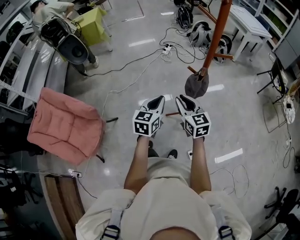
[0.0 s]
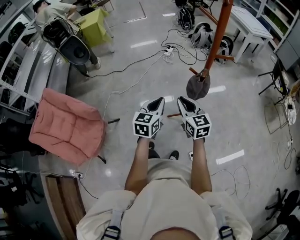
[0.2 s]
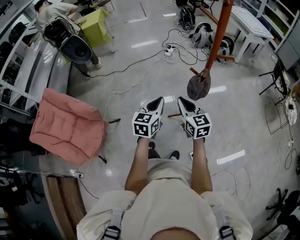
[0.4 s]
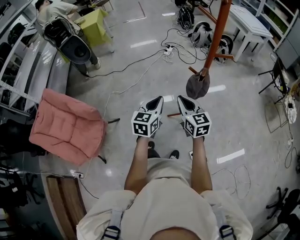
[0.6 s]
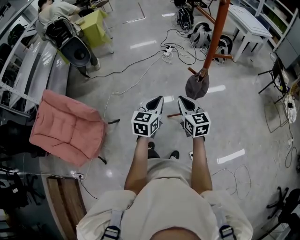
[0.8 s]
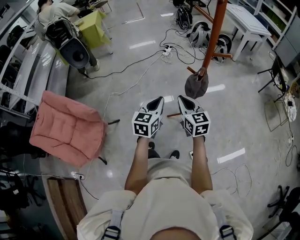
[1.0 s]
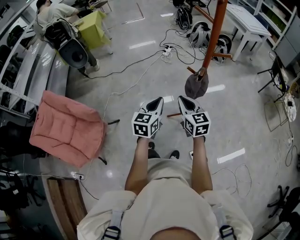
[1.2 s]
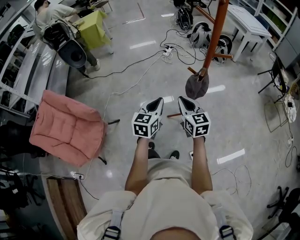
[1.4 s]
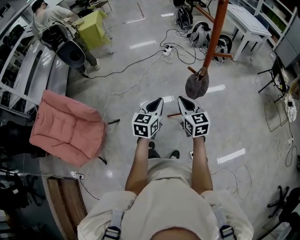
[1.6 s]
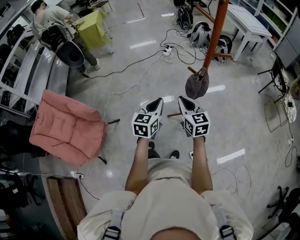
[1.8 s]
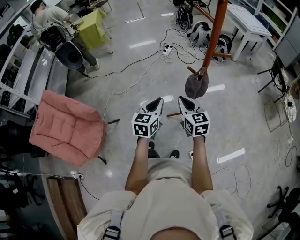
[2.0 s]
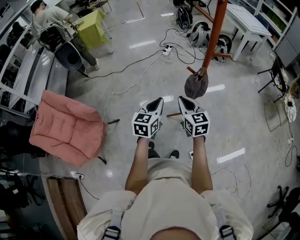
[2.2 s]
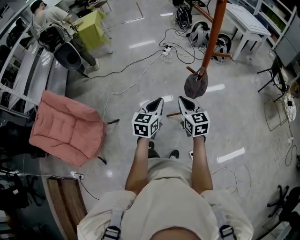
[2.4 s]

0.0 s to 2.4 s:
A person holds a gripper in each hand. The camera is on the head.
0.0 to 1.2 s: Both grippers stay about where they are.
1.2 to 2.4 s: The two grippers keep their place.

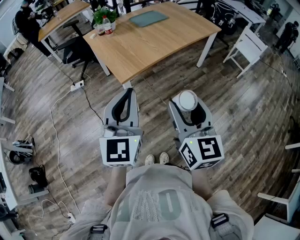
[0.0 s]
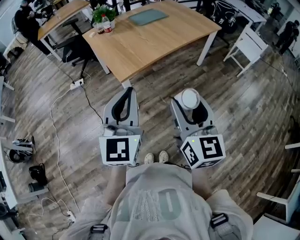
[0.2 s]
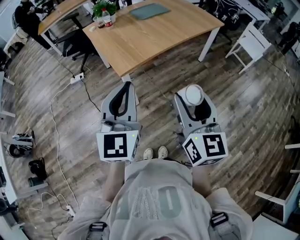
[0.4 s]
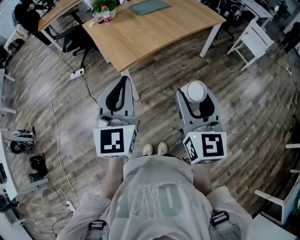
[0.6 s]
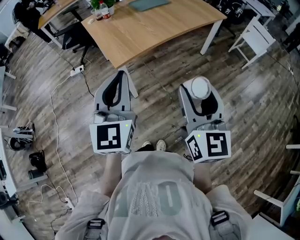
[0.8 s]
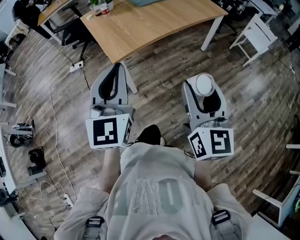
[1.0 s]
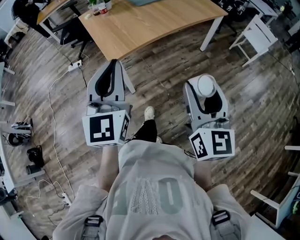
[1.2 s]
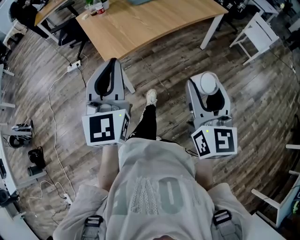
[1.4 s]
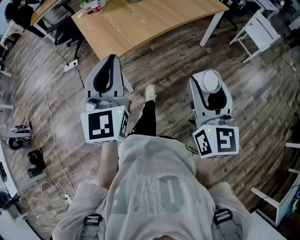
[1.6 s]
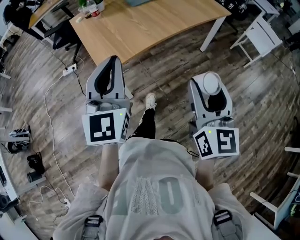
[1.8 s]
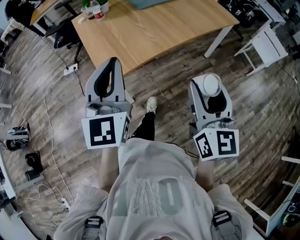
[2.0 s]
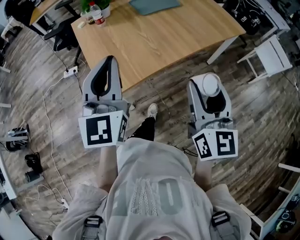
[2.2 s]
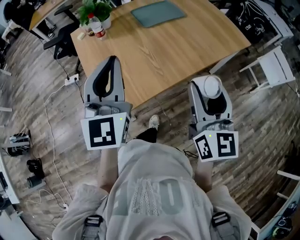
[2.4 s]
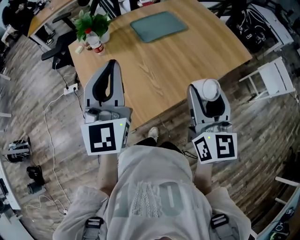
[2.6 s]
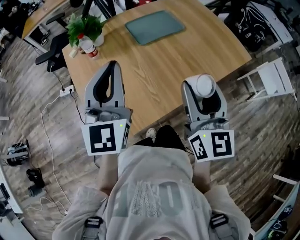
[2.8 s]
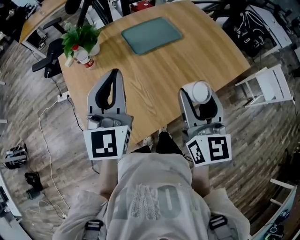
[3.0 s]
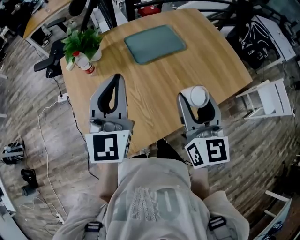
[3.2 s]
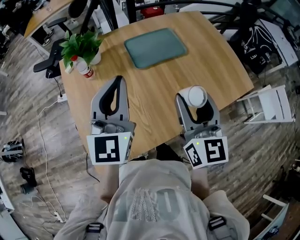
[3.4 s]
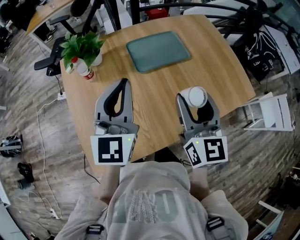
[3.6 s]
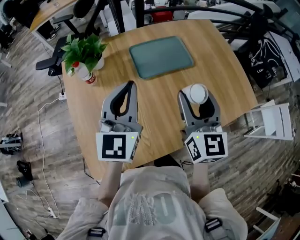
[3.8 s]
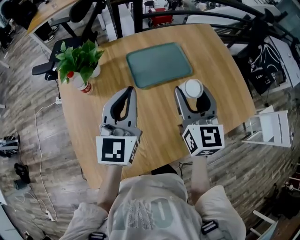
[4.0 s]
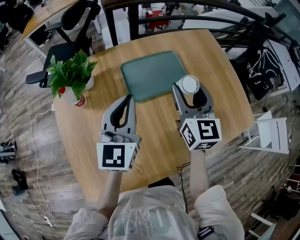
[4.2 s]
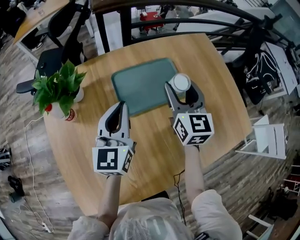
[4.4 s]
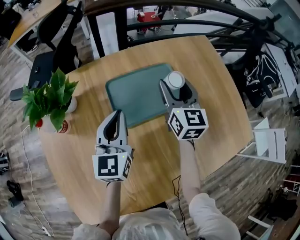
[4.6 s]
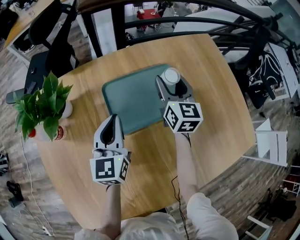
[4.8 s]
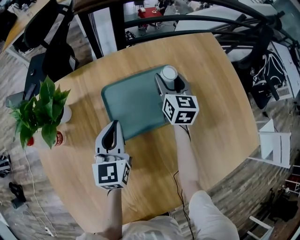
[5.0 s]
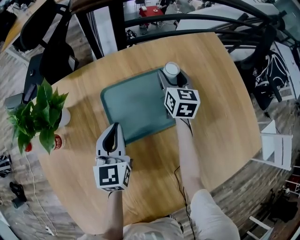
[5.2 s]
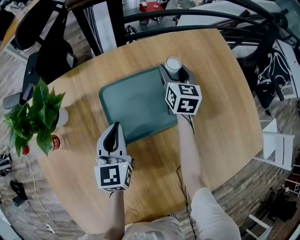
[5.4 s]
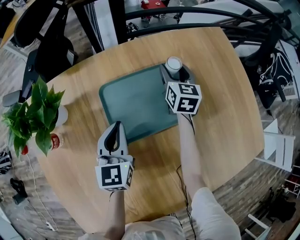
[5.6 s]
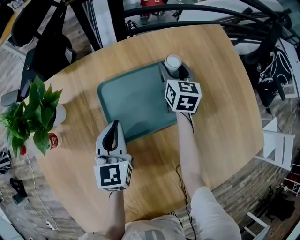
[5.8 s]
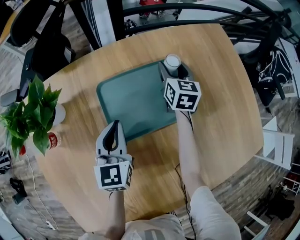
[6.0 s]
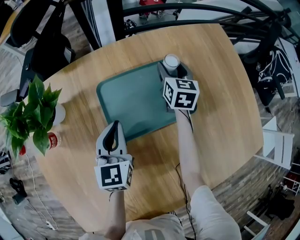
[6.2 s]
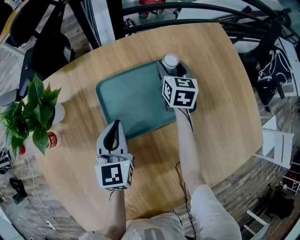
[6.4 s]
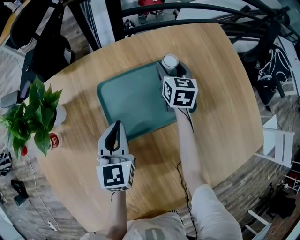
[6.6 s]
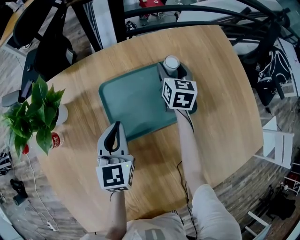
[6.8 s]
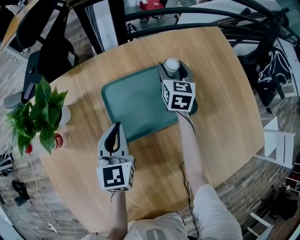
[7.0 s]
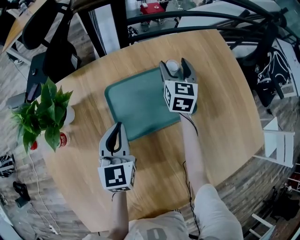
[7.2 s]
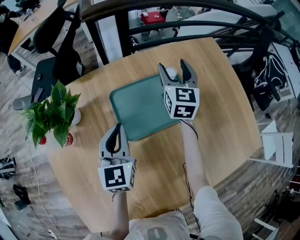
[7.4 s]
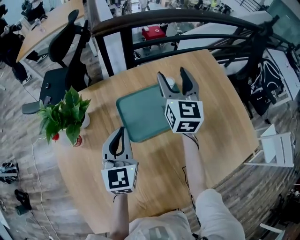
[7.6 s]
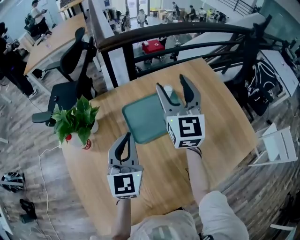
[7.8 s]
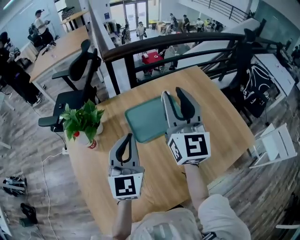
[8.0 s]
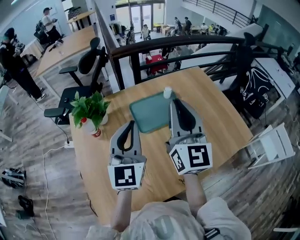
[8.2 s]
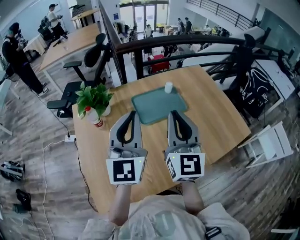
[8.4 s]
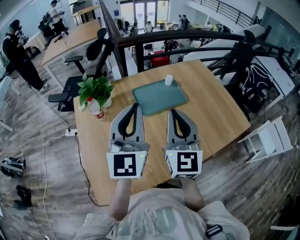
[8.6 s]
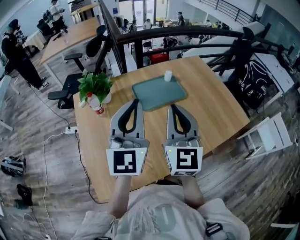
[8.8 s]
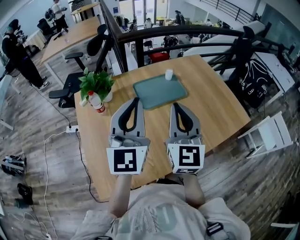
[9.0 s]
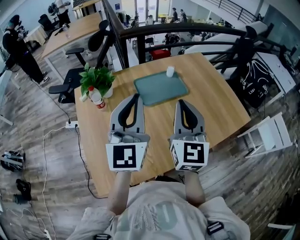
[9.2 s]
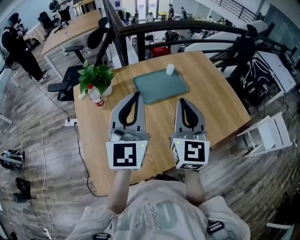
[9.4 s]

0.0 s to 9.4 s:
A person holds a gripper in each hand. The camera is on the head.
0.0 to 1.6 s: The right gripper shifts approximately 15 cm to the right and forward. Meanwhile the left gripper goes roughly 10 cm forward.
1.6 to 3.2 s: Both grippers are carried forward, approximately 50 cm.
3.2 to 4.8 s: The left gripper heads forward and downward, covering roughly 35 cm, and rotates roughly 30 degrees; the right gripper travels forward by approximately 50 cm.
4.8 to 6.2 s: The right gripper travels downward and forward by approximately 15 cm; the left gripper moves downward, roughly 5 cm.
6.2 to 7.8 s: The left gripper heads upward and backward, covering about 20 cm, while the right gripper is displaced upward and backward by some 35 cm, and tips its fingers upward by approximately 30 degrees.
7.8 to 9.4 s: The left gripper shifts approximately 25 cm backward and upward. The right gripper travels backward by approximately 30 cm, and closes its fingers.

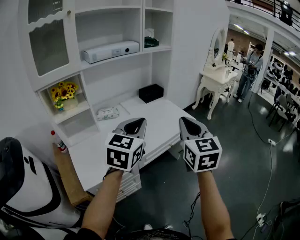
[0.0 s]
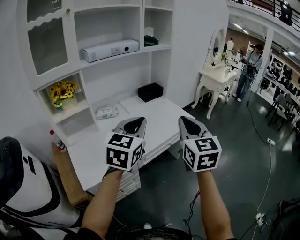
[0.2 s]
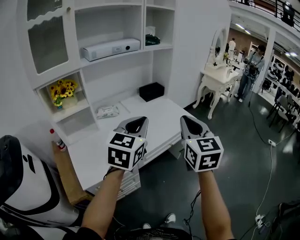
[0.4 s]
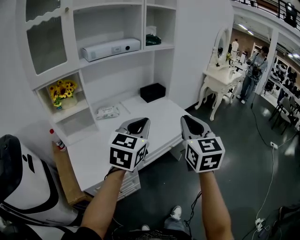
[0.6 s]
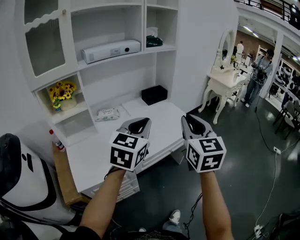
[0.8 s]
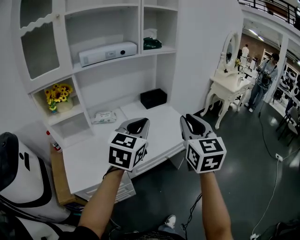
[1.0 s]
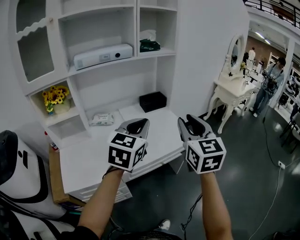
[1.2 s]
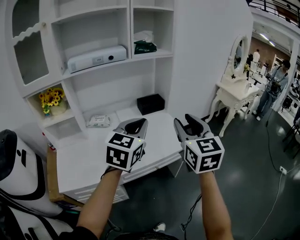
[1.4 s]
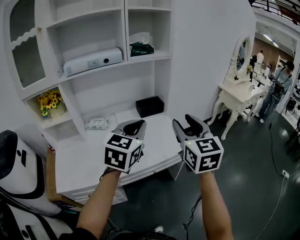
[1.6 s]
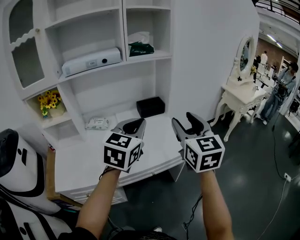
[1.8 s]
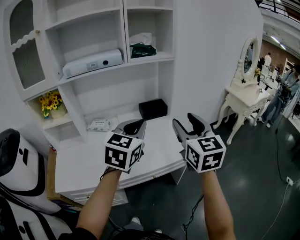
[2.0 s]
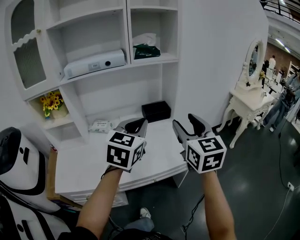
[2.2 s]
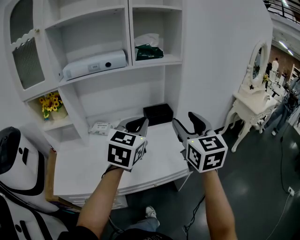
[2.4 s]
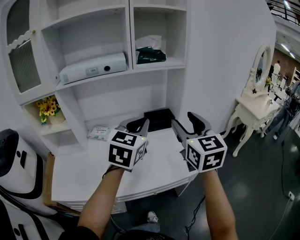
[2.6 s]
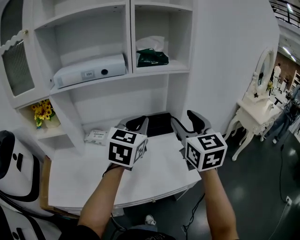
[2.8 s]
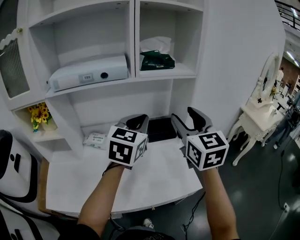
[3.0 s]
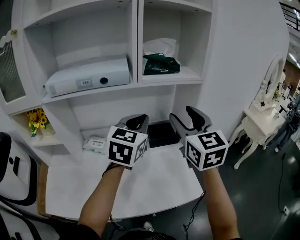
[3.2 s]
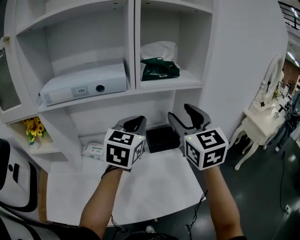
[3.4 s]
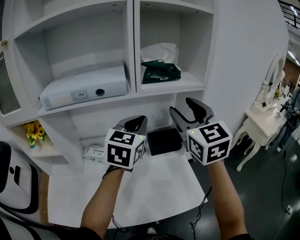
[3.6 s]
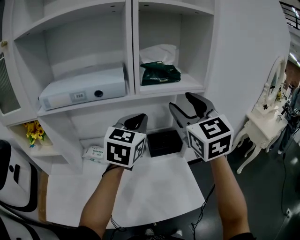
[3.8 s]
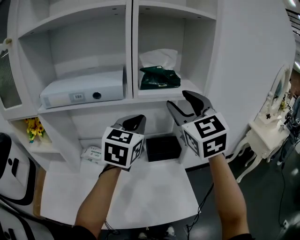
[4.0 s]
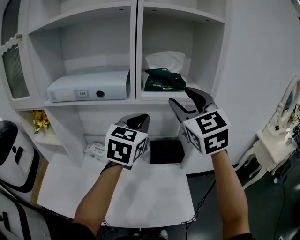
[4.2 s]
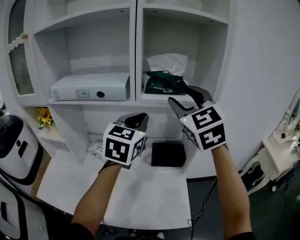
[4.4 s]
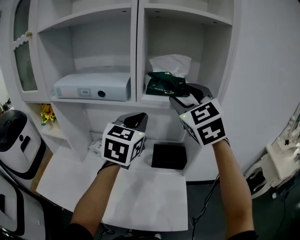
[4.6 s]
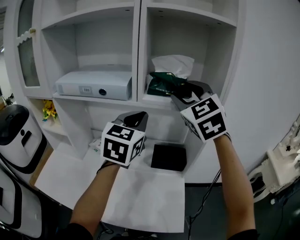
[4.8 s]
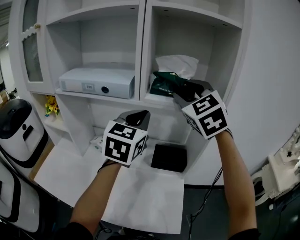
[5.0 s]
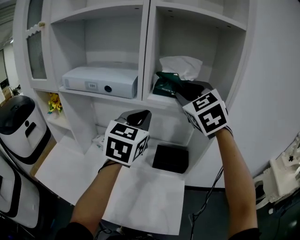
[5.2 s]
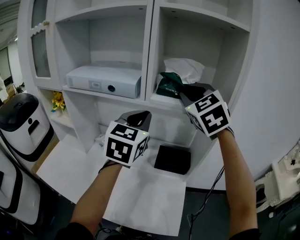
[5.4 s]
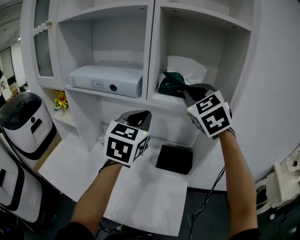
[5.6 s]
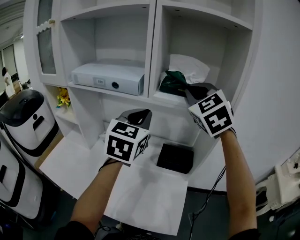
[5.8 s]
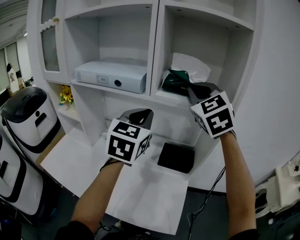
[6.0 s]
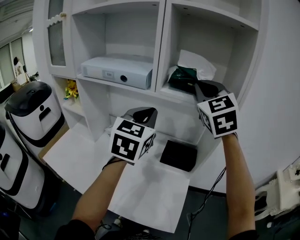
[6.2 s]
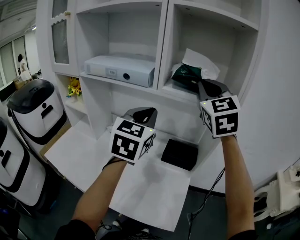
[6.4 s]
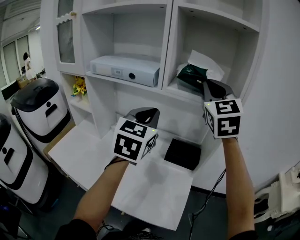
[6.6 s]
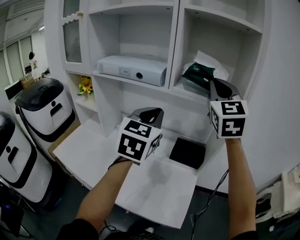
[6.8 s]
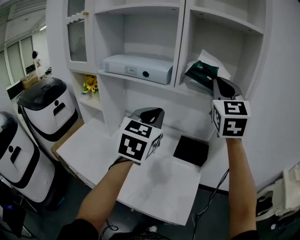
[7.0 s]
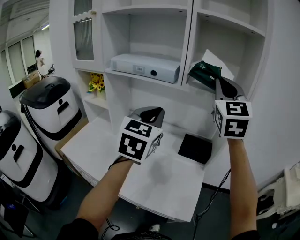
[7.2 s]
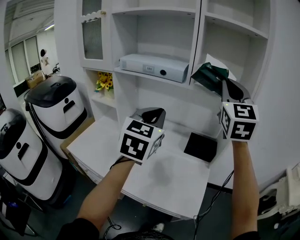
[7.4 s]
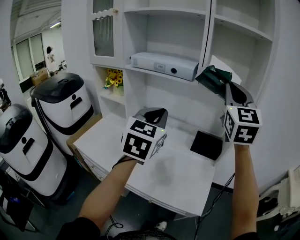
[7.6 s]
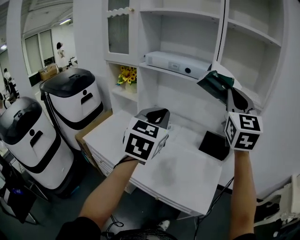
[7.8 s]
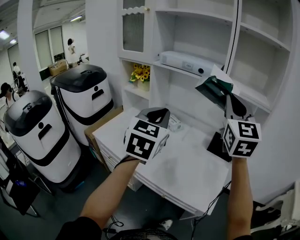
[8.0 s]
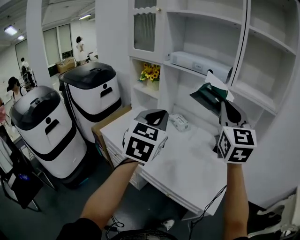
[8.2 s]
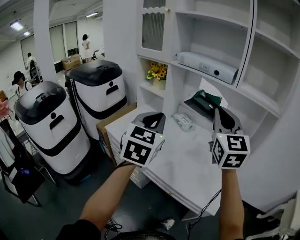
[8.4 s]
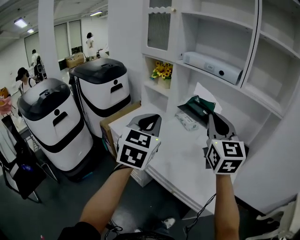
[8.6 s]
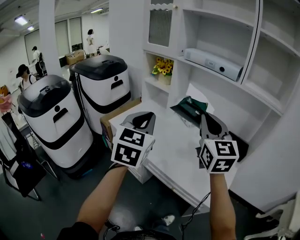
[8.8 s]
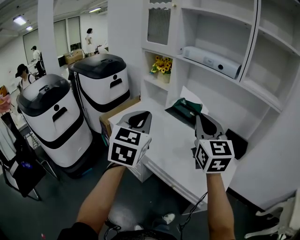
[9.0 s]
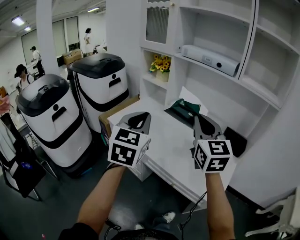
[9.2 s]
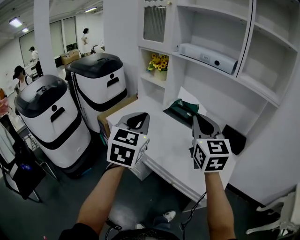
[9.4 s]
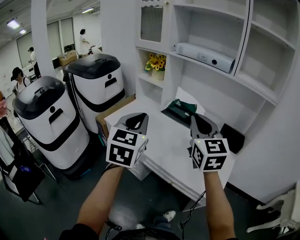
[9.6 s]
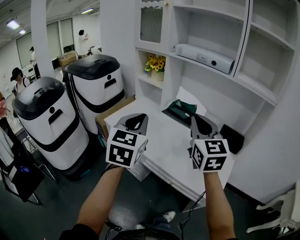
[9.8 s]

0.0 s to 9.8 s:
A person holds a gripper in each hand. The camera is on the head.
0.0 to 1.4 s: Both grippers travel together forward and to the right, some 20 cm. The right gripper opens its fingers.
1.4 to 2.8 s: Both grippers travel together forward, approximately 25 cm.
2.8 to 4.2 s: The right gripper moves forward and upward, about 20 cm, and turns by roughly 30 degrees; the left gripper travels forward by approximately 15 cm.
4.2 to 5.6 s: The right gripper moves forward, about 10 cm, changes its angle by some 20 degrees, and closes up.
5.6 to 7.0 s: The two grippers go approximately 10 cm backward. The right gripper changes its angle by approximately 30 degrees.
7.0 to 8.4 s: The right gripper heads to the left, backward and downward, covering approximately 30 cm, and changes its angle by some 20 degrees; the left gripper goes approximately 30 cm to the left and backward.
8.4 to 9.8 s: The right gripper is displaced downward and to the left by some 10 cm; the left gripper goes some 5 cm to the left.

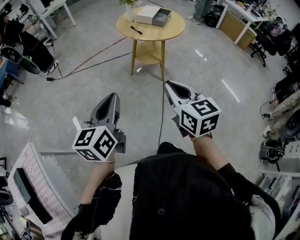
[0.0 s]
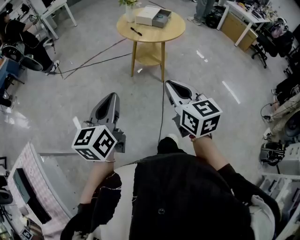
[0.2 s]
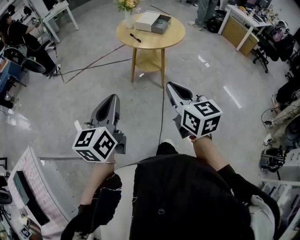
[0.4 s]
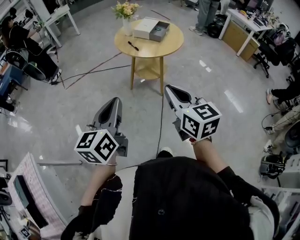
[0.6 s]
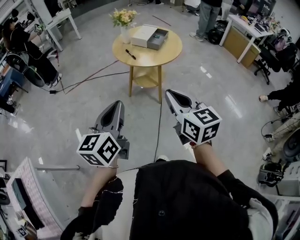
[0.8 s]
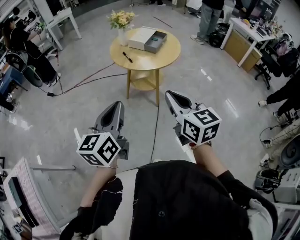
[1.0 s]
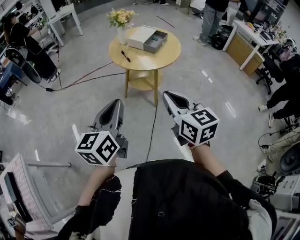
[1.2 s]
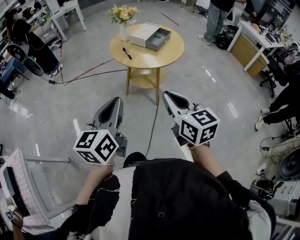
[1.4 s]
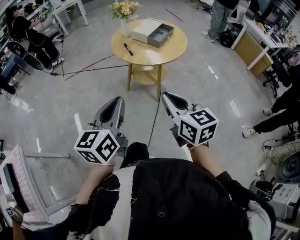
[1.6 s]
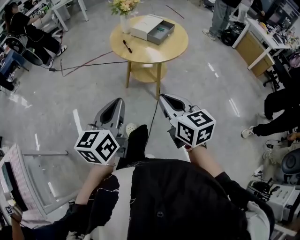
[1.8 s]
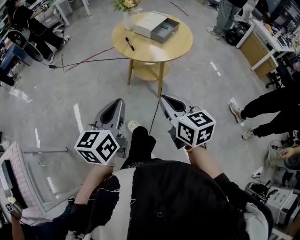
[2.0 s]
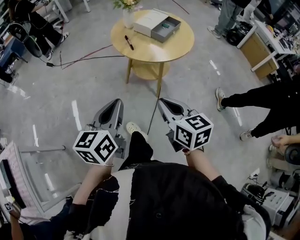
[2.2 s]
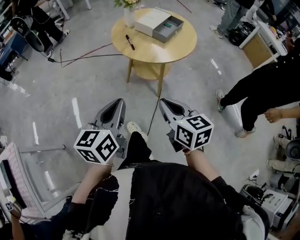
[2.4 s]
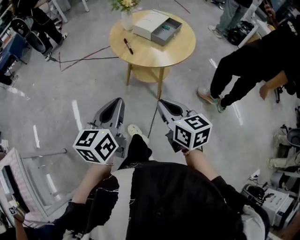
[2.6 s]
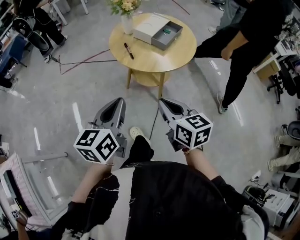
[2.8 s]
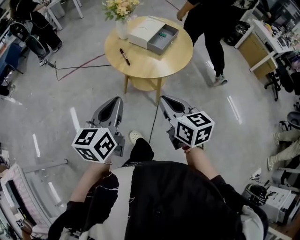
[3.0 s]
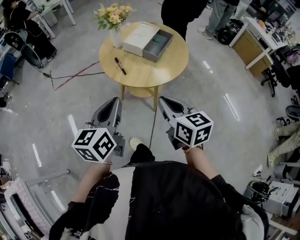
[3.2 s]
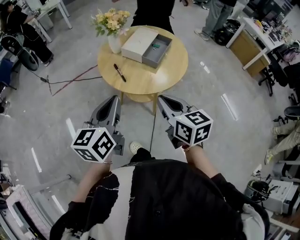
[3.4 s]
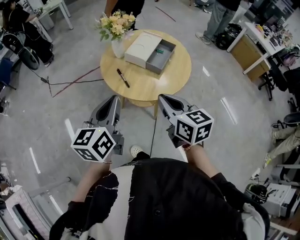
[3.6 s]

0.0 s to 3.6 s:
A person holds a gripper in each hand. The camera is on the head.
0.0 to 1.8 s: The left gripper is displaced to the right and forward by approximately 25 cm. Meanwhile the right gripper shifts some 25 cm forward and to the right.
1.8 to 3.6 s: Both grippers move forward, some 25 cm.
